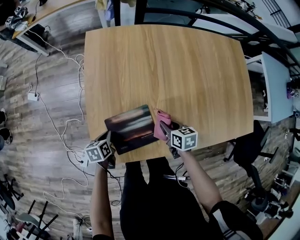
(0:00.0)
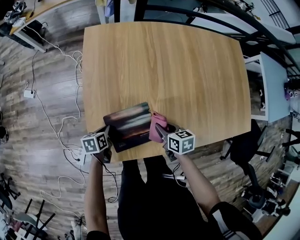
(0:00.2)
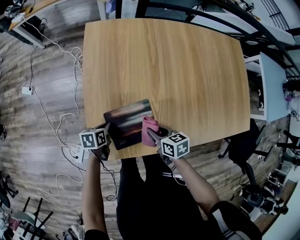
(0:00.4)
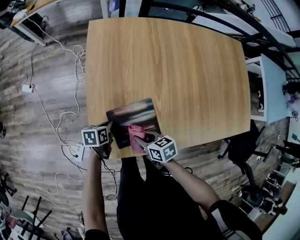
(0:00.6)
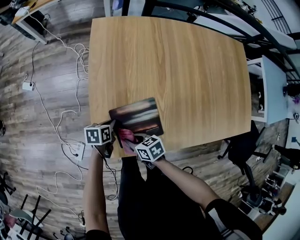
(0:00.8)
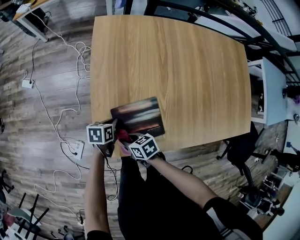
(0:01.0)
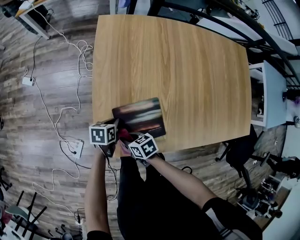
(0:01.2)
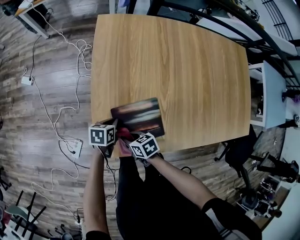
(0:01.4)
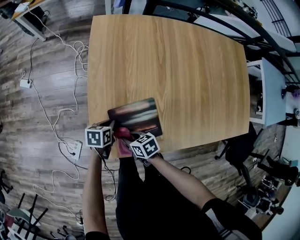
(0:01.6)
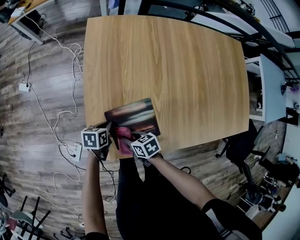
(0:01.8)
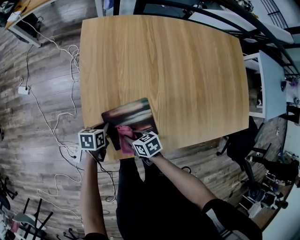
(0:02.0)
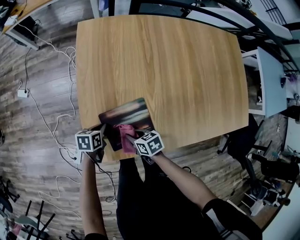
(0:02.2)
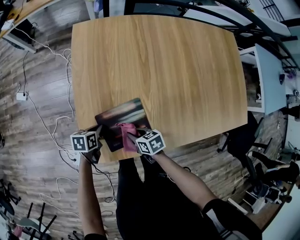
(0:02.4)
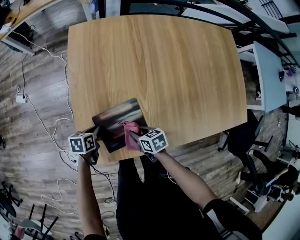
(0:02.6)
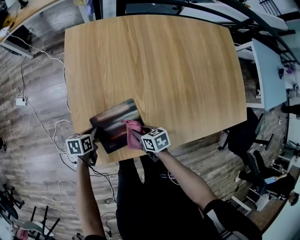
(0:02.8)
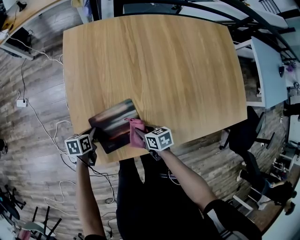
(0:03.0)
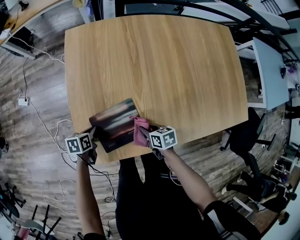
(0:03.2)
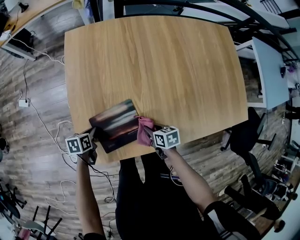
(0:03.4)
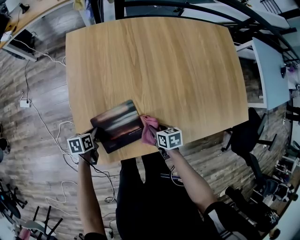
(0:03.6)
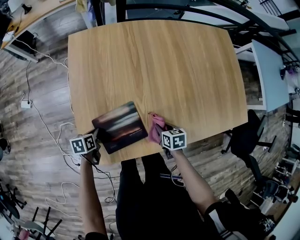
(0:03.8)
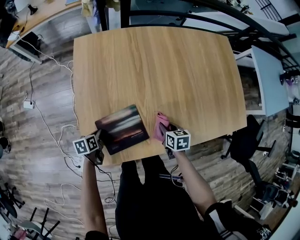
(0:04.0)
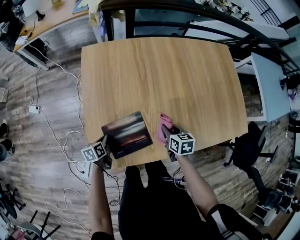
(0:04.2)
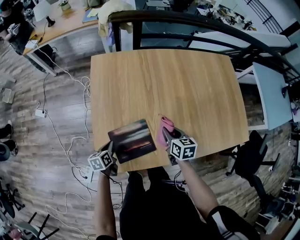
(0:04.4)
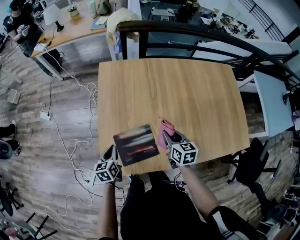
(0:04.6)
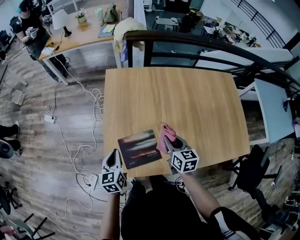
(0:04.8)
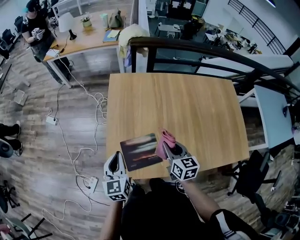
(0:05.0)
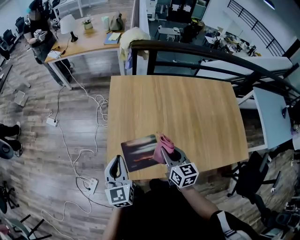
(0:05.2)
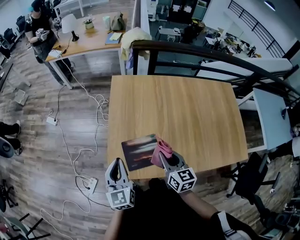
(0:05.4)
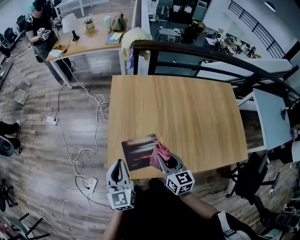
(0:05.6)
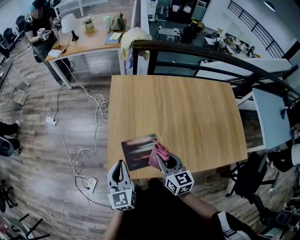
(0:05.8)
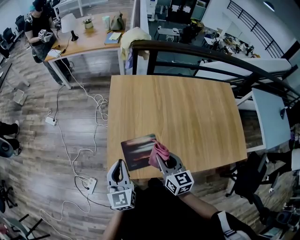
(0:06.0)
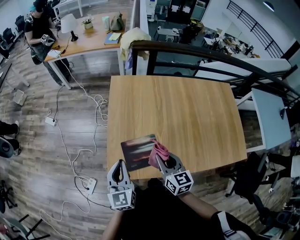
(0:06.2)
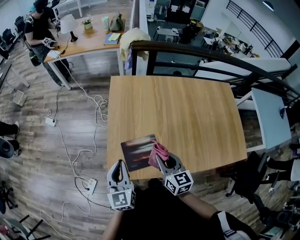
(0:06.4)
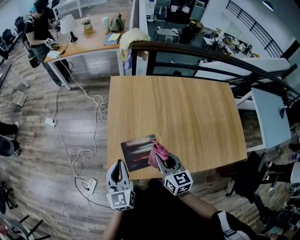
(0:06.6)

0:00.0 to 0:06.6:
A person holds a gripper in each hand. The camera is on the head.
0:00.0 to 0:01.6: The right gripper shifts by roughly 25 cm, and rotates about 30 degrees.
0:01.6 to 0:03.2: The right gripper changes place by roughly 20 cm.
0:03.2 to 0:05.0: Both grippers travel together upward, some 30 cm. The right gripper changes its angle by roughly 40 degrees; the left gripper points its fingers roughly 40 degrees further upward.
0:05.0 to 0:06.6: The left gripper shifts by approximately 5 cm; the right gripper shifts some 5 cm to the left.

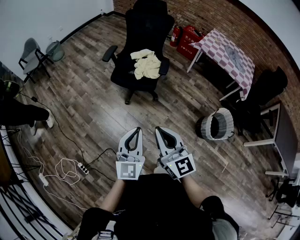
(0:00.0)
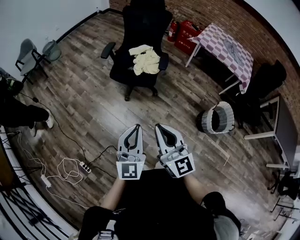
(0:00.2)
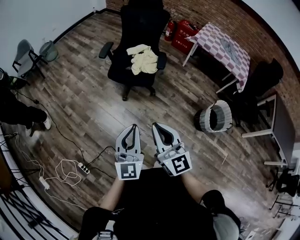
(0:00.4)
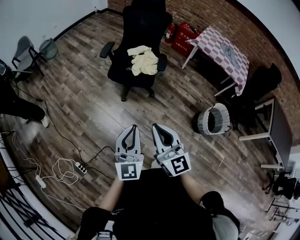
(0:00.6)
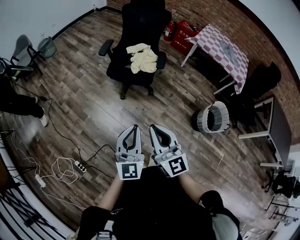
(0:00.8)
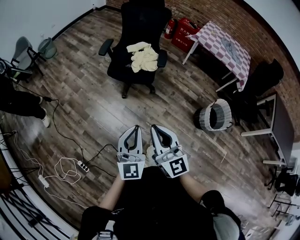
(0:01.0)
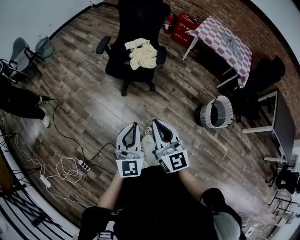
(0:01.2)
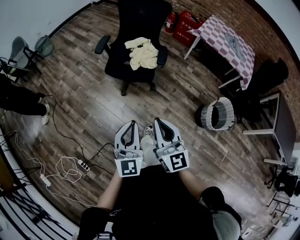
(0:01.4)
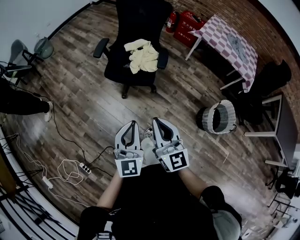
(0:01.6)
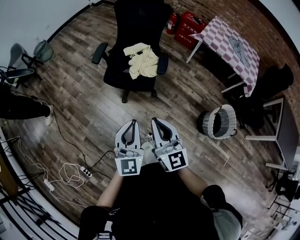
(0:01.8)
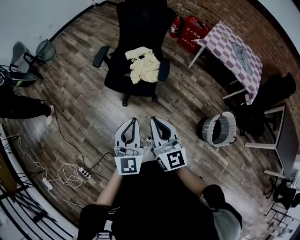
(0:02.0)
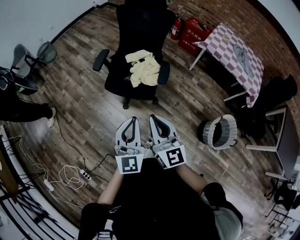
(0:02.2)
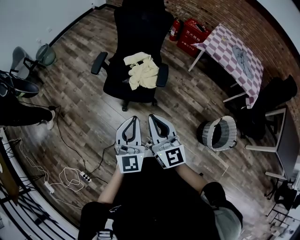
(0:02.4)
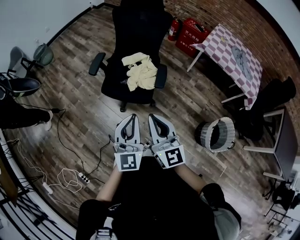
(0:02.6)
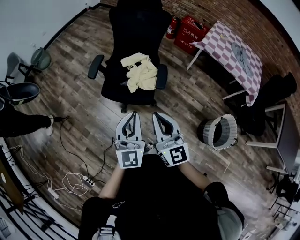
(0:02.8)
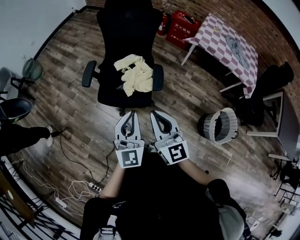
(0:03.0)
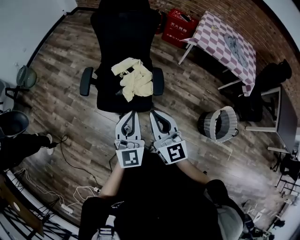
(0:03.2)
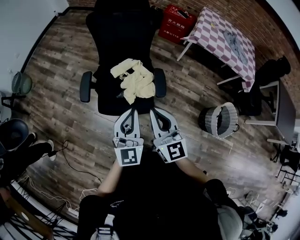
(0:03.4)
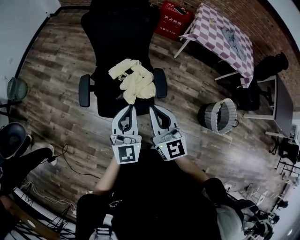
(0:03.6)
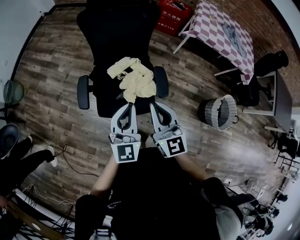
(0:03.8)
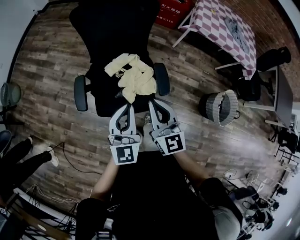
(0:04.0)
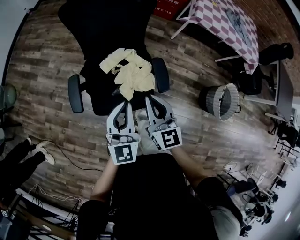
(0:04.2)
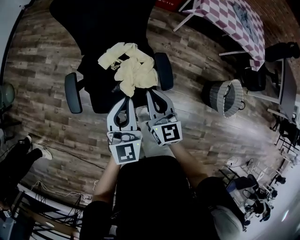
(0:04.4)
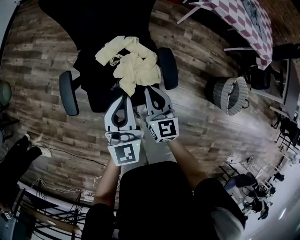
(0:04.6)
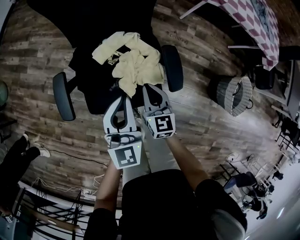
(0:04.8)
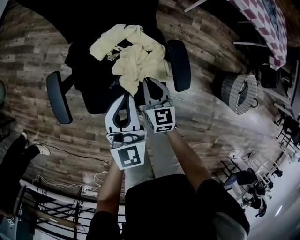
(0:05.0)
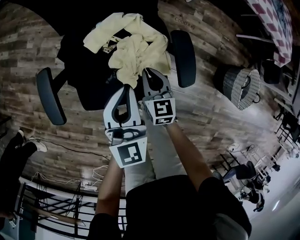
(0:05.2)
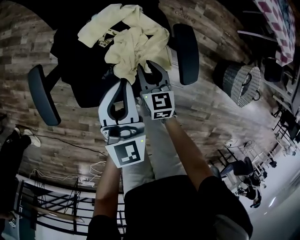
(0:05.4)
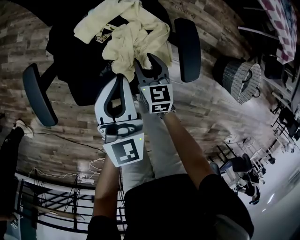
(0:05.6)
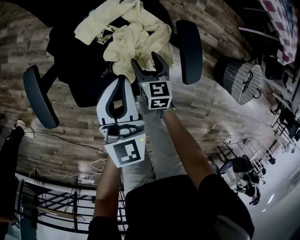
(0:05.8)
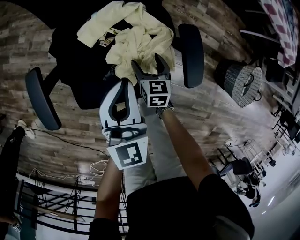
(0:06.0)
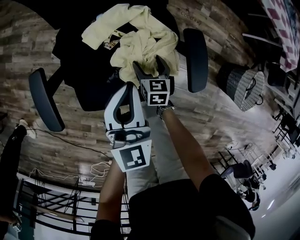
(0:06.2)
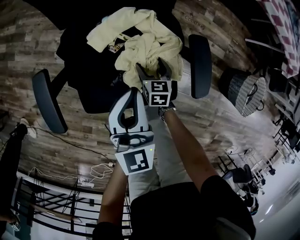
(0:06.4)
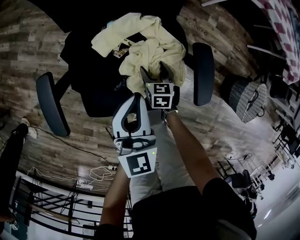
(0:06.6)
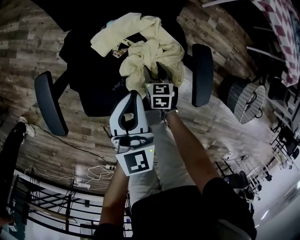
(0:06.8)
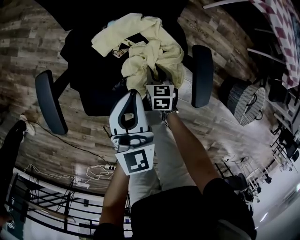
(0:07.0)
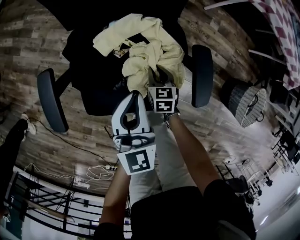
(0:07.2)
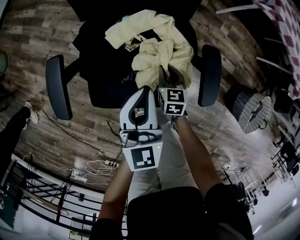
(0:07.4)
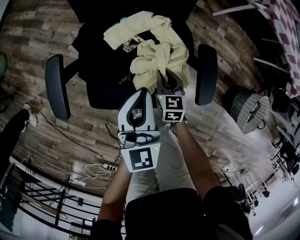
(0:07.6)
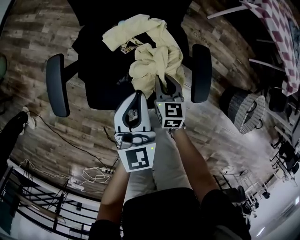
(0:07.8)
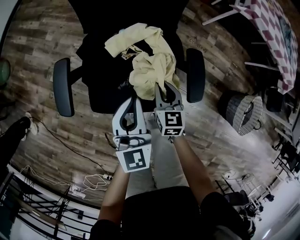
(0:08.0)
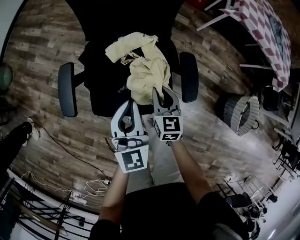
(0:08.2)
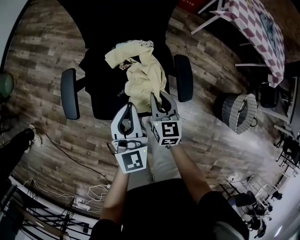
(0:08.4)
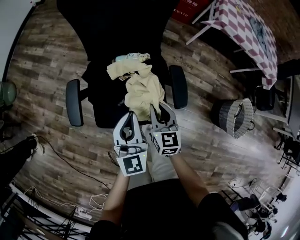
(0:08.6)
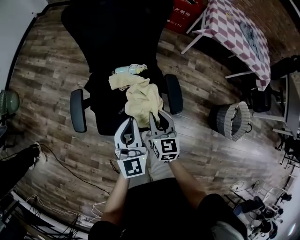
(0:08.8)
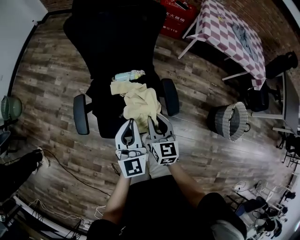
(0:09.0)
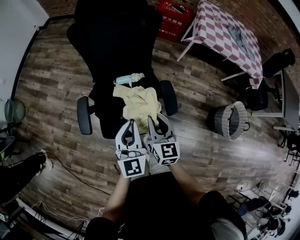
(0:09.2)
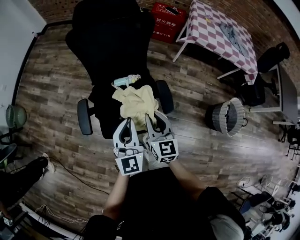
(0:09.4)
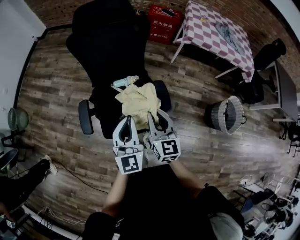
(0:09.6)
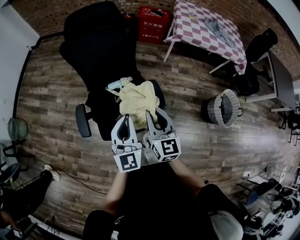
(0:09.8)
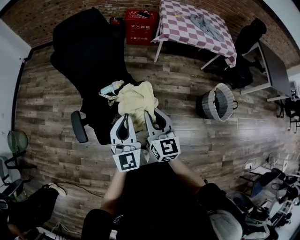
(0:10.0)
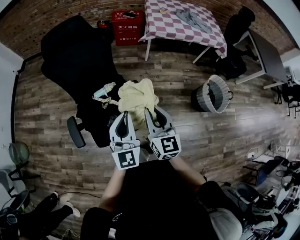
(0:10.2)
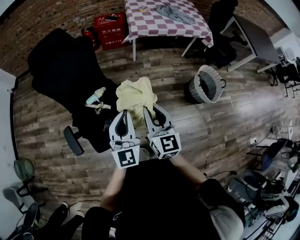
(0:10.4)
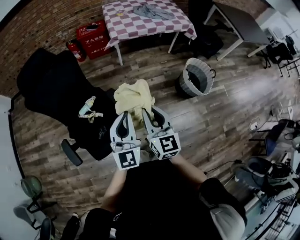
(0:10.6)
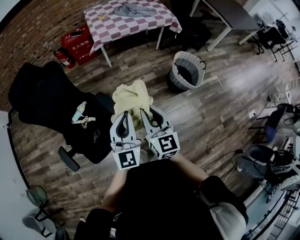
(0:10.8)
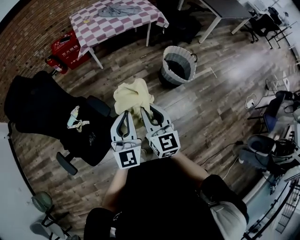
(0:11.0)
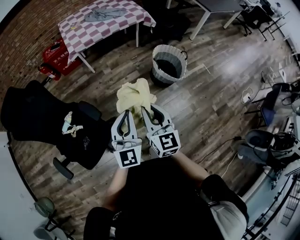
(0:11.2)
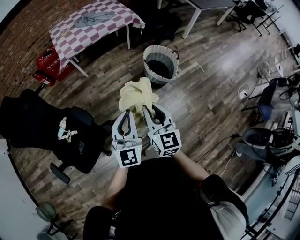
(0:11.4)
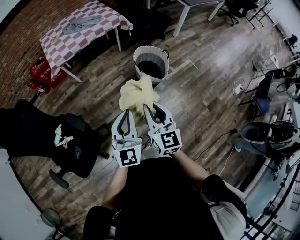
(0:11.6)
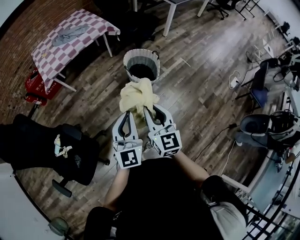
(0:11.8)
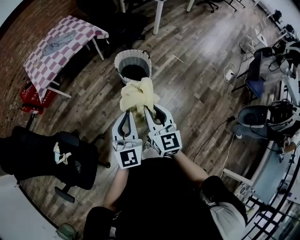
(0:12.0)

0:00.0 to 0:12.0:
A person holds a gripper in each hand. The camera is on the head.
0:00.0 to 0:01.6: Both grippers move forward, roughly 10 cm.
0:01.6 to 0:03.0: Both grippers move forward, roughly 25 cm.
0:03.0 to 0:04.4: Both grippers travel together forward and downward, roughly 30 cm. The right gripper swivels about 30 degrees.
0:04.4 to 0:06.0: The left gripper shifts approximately 20 cm downward. The right gripper heads downward, covering roughly 40 cm, changes its angle by some 30 degrees, and opens its fingers.
0:06.0 to 0:07.6: The right gripper moves roughly 5 cm downward and comes back, and closes up.
0:07.6 to 0:09.0: The left gripper travels upward and backward by approximately 15 cm; the right gripper moves upward, some 30 cm, and changes its angle by roughly 20 degrees.
0:09.0 to 0:10.4: Both grippers travel together upward and to the right, roughly 25 cm. The right gripper changes its angle by about 30 degrees. Meanwhile the left gripper swivels roughly 30 degrees.
0:10.4 to 0:12.0: The pair of grippers is taken roughly 50 cm. The left gripper swivels roughly 40 degrees; the right gripper changes its angle by about 40 degrees.

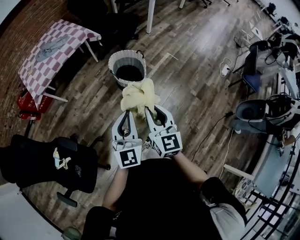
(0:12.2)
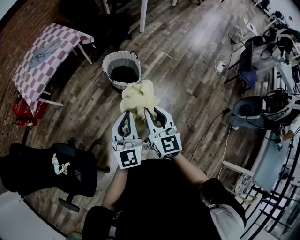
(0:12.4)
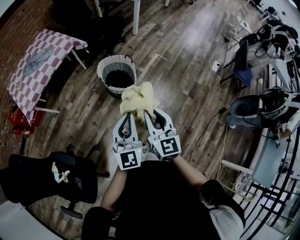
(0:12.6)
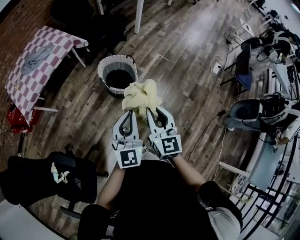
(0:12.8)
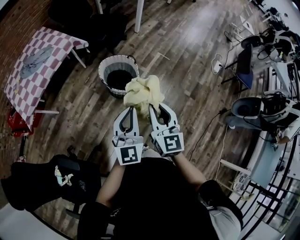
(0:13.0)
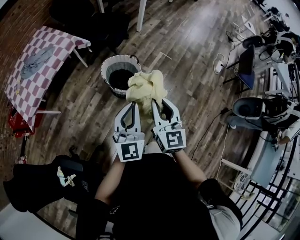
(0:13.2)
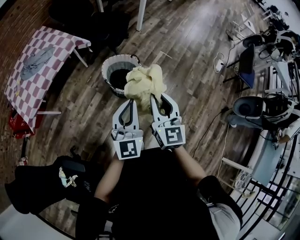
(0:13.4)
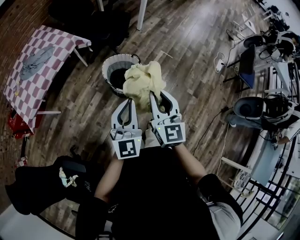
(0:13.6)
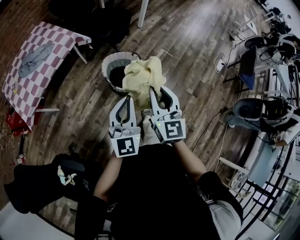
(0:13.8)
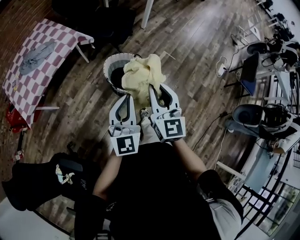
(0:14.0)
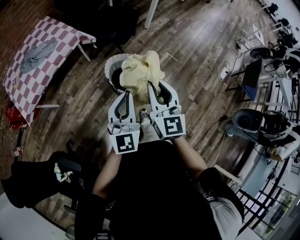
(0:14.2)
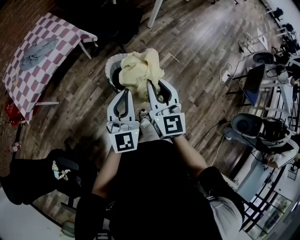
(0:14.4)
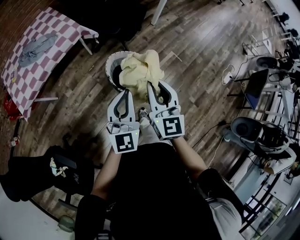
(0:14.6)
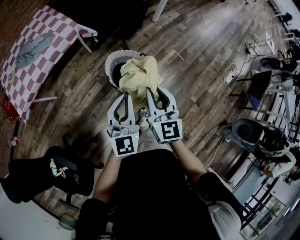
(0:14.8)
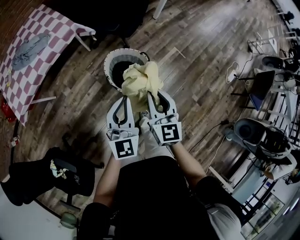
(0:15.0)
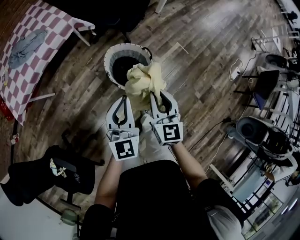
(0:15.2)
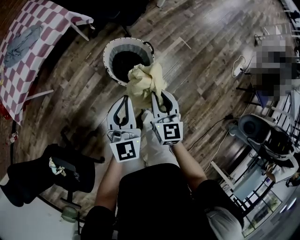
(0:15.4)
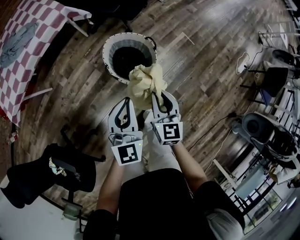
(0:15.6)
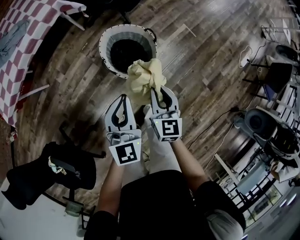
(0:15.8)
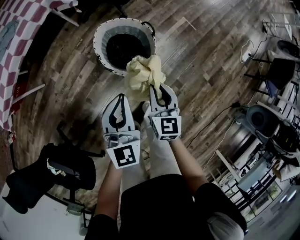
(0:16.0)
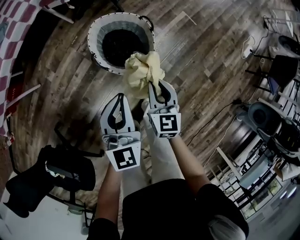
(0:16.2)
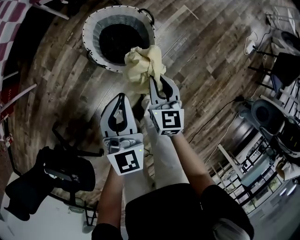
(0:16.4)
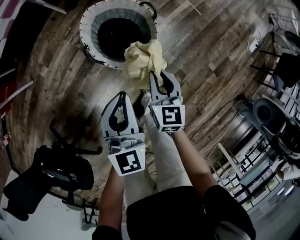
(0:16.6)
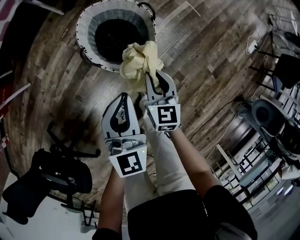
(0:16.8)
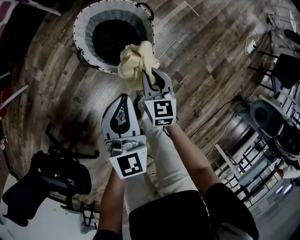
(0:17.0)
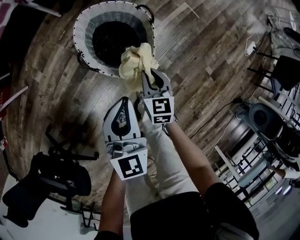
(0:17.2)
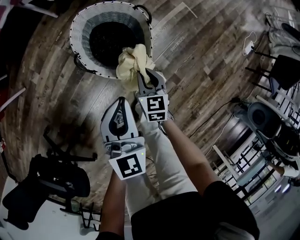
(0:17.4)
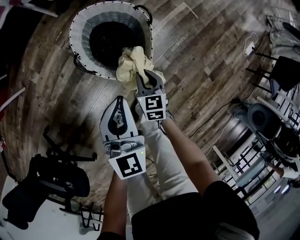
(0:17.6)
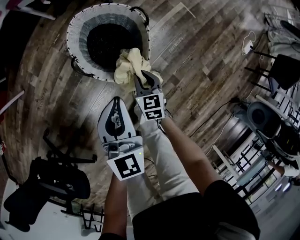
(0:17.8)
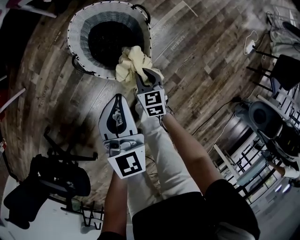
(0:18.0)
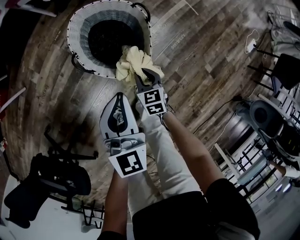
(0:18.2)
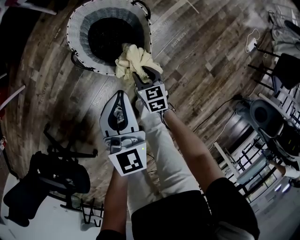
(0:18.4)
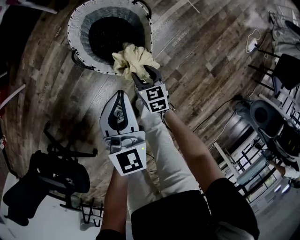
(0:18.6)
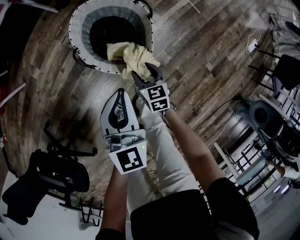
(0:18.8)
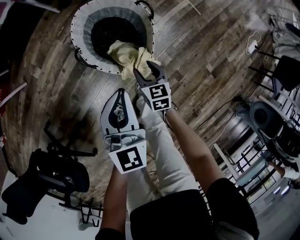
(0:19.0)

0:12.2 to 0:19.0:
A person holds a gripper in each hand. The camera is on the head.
0:12.2 to 0:13.6: Both grippers travel together forward, about 20 cm.
0:13.6 to 0:15.0: The two grippers go some 20 cm forward and downward.
0:15.0 to 0:16.2: The two grippers go approximately 25 cm downward.
0:16.2 to 0:17.6: The left gripper heads downward, covering about 10 cm, while the right gripper moves downward, some 20 cm.
0:17.6 to 0:19.0: The right gripper opens.
